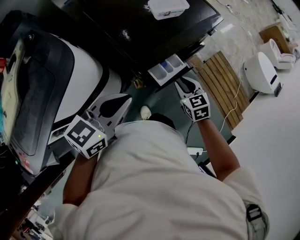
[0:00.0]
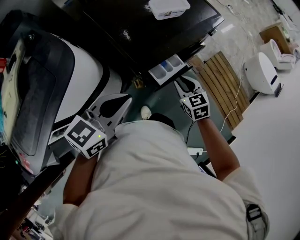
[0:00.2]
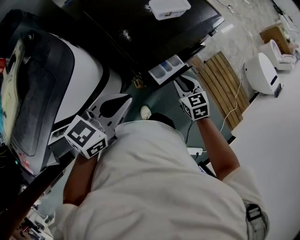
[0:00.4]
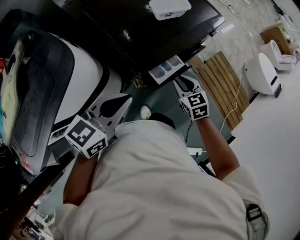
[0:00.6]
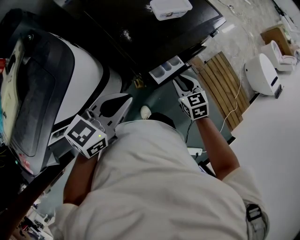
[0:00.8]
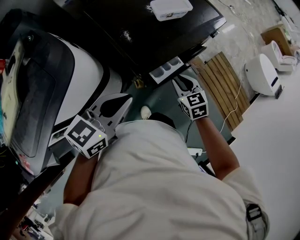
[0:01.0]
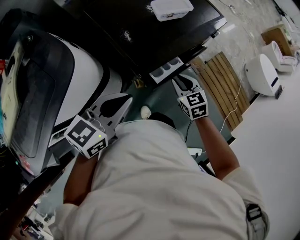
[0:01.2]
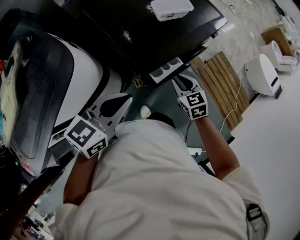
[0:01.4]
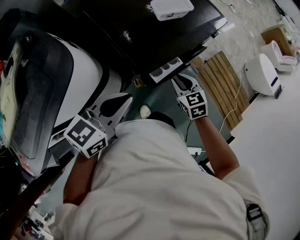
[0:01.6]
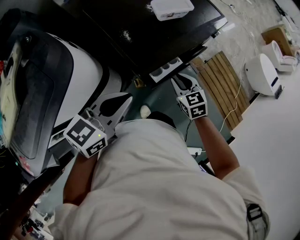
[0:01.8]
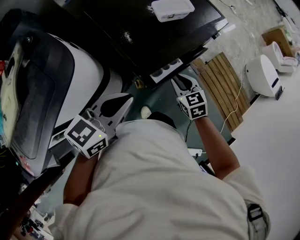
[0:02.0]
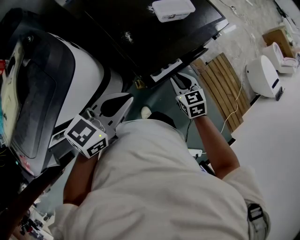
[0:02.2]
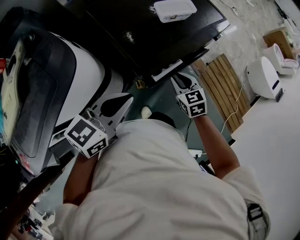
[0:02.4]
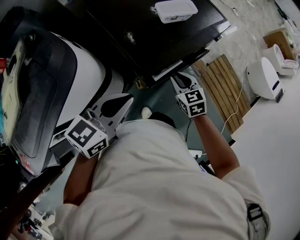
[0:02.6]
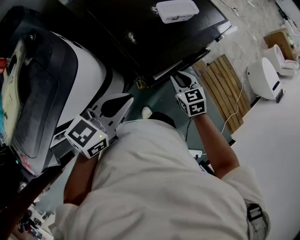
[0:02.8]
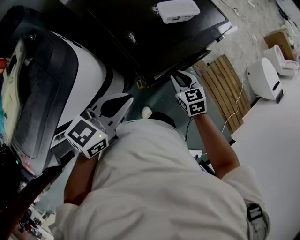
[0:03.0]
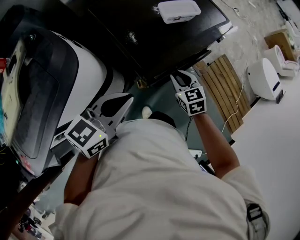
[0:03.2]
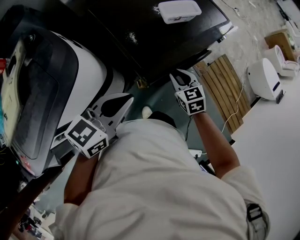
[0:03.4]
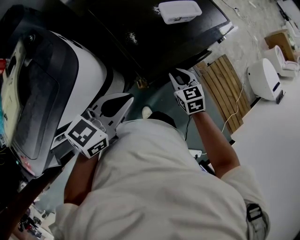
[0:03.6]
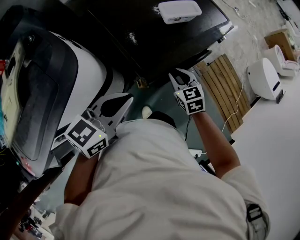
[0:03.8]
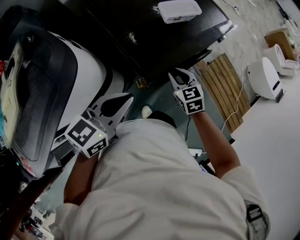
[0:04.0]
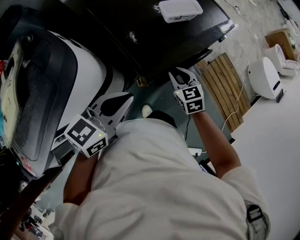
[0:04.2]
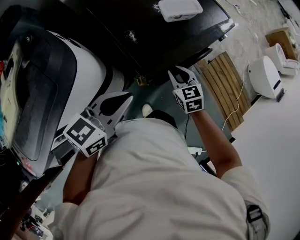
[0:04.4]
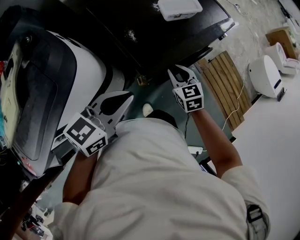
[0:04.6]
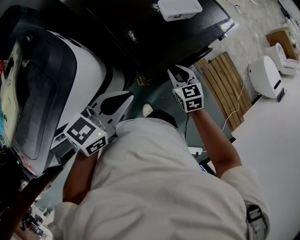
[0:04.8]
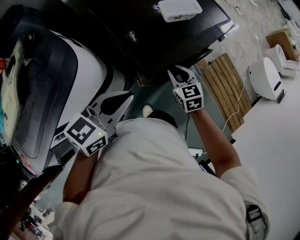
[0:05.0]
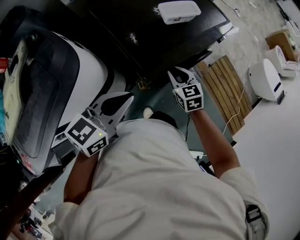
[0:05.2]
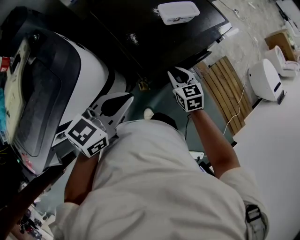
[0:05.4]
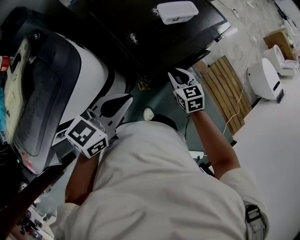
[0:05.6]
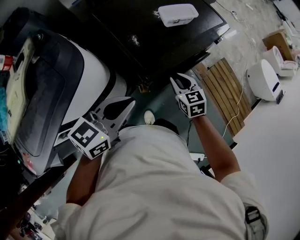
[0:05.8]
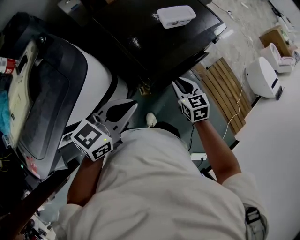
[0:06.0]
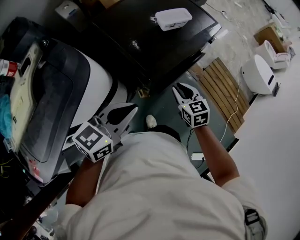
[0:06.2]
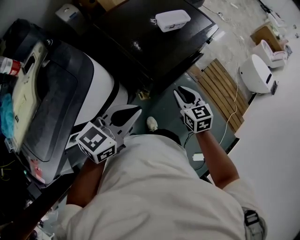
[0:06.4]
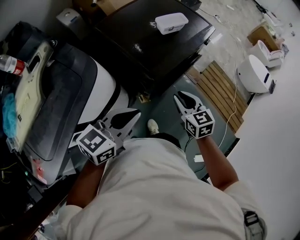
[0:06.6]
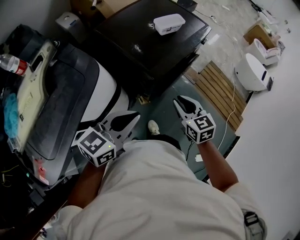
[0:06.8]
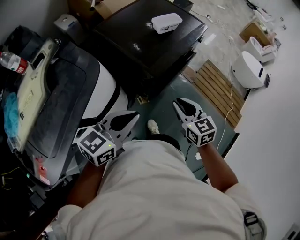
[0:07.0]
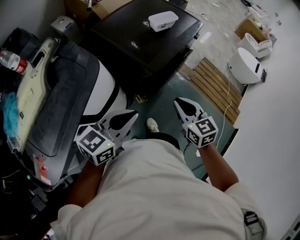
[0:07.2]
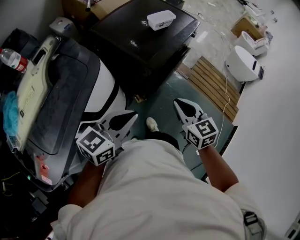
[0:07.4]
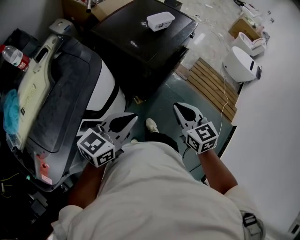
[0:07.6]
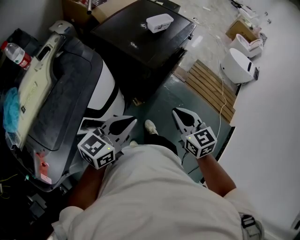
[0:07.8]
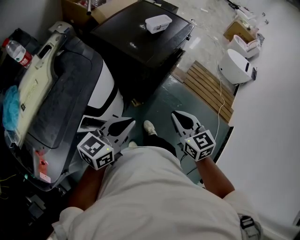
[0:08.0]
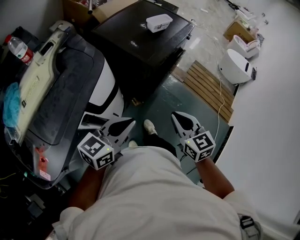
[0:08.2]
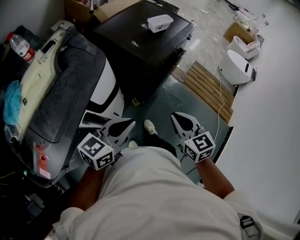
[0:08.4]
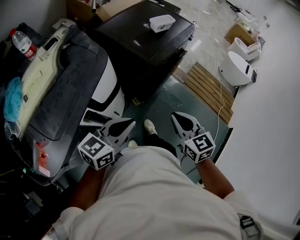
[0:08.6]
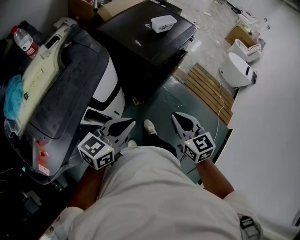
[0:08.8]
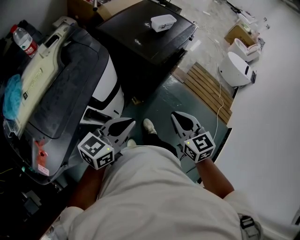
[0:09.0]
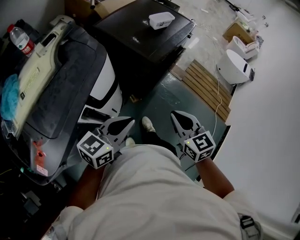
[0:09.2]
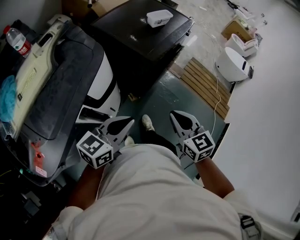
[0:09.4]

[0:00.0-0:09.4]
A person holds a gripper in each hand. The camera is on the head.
0:00.0 to 0:01.6: There are only small adjustments of the grippers.
0:01.6 to 0:04.8: There are only small adjustments of the grippers.
0:04.8 to 0:06.2: Both grippers travel together backward, about 5 cm.
0:06.2 to 0:07.8: The right gripper moves backward and upward, about 25 cm, while the left gripper heads backward, covering some 15 cm.
0:07.8 to 0:09.4: The right gripper is displaced backward by some 5 cm.

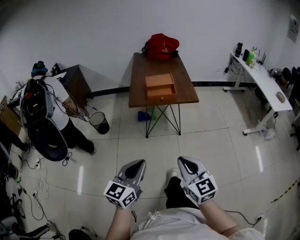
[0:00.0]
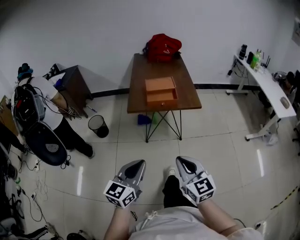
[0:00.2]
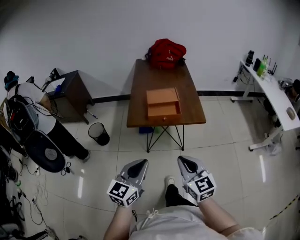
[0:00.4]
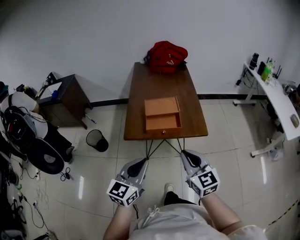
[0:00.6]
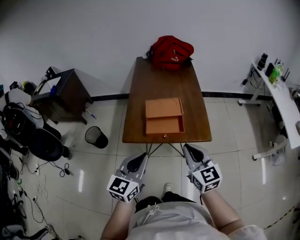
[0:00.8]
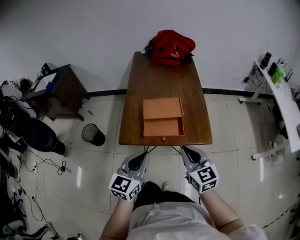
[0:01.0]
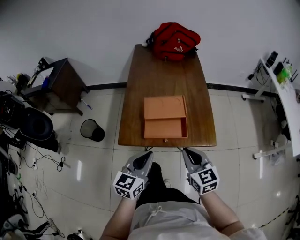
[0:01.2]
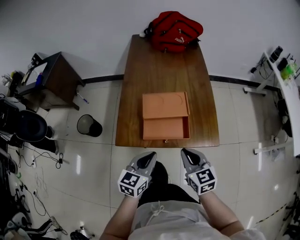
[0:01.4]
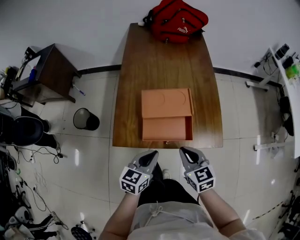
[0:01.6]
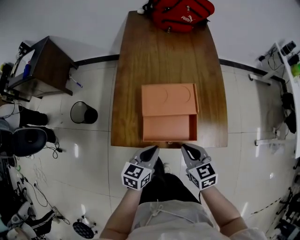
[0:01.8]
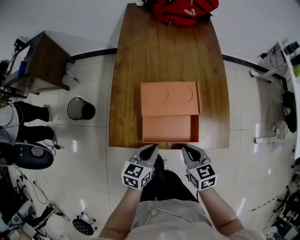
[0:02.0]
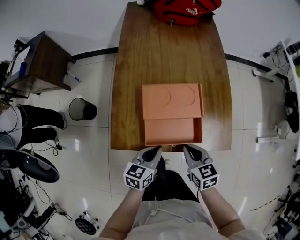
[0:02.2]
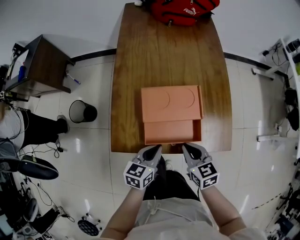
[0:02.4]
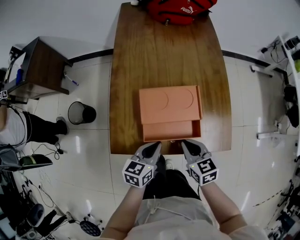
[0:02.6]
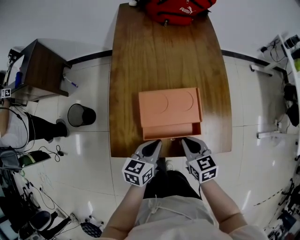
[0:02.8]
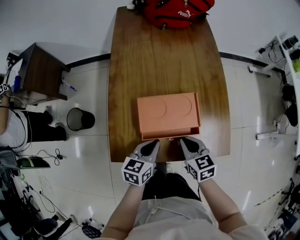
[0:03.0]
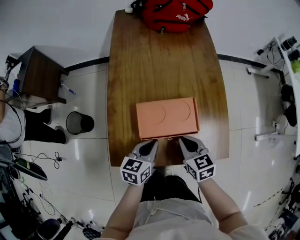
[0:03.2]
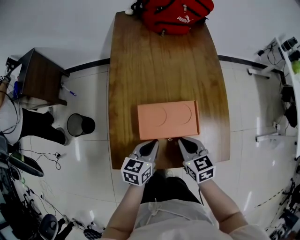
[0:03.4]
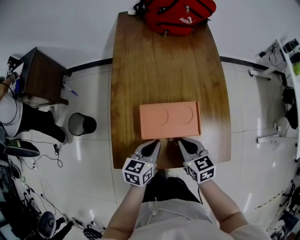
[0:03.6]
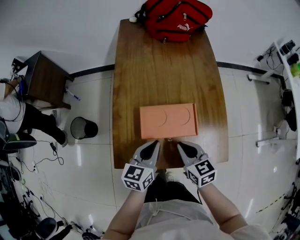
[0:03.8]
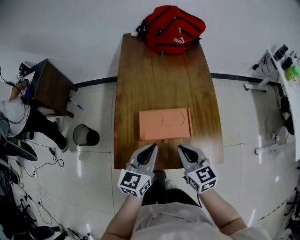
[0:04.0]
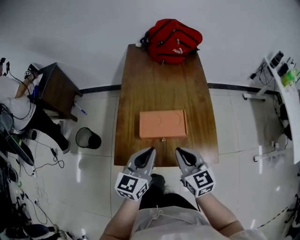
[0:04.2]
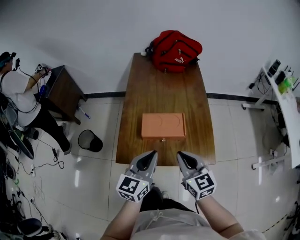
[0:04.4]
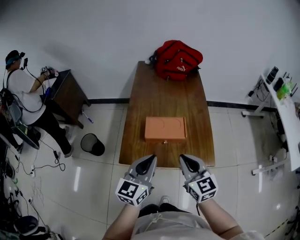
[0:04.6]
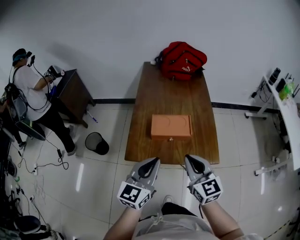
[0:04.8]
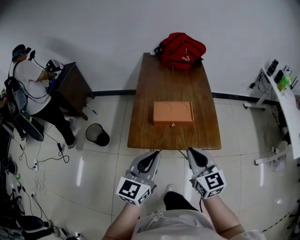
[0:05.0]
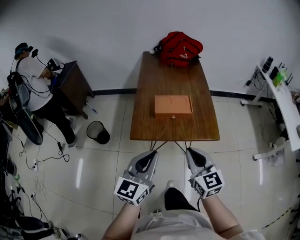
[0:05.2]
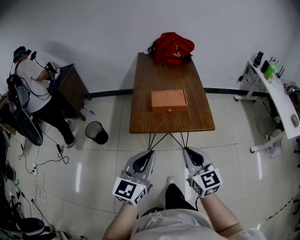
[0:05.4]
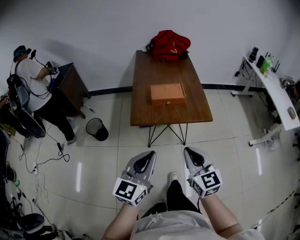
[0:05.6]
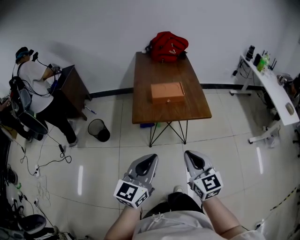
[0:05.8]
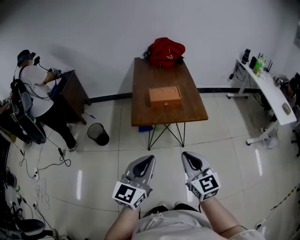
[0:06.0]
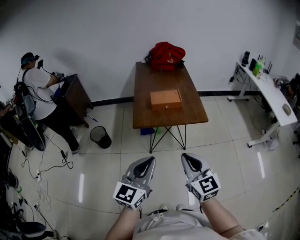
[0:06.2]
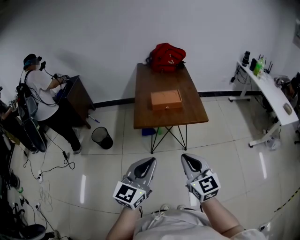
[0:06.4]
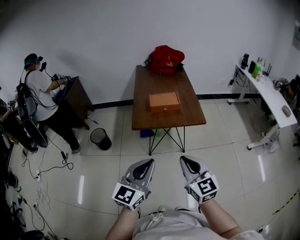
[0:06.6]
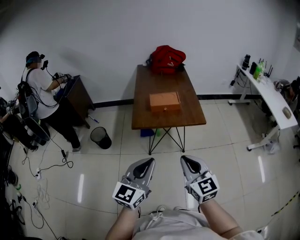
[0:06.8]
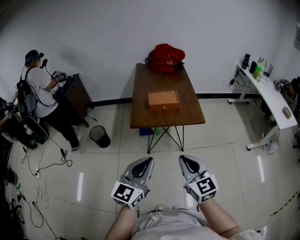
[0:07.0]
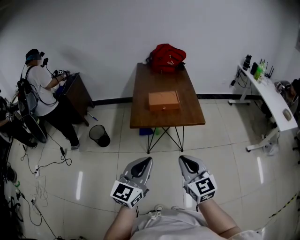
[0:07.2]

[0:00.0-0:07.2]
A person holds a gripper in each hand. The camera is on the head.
0:00.0 to 0:01.4: The pair of grippers is taken forward, approximately 50 cm.
0:01.4 to 0:02.8: The right gripper goes about 15 cm downward and forward. The left gripper shifts about 15 cm forward and downward.
0:02.8 to 0:04.4: Both grippers move upward, approximately 20 cm. The right gripper changes its angle by about 30 degrees; the left gripper changes its angle by about 30 degrees.
0:04.4 to 0:05.8: Both grippers move backward, some 35 cm.
0:05.8 to 0:07.2: The right gripper shifts by some 5 cm. The left gripper moves some 5 cm.

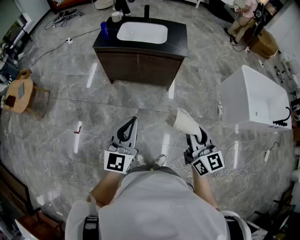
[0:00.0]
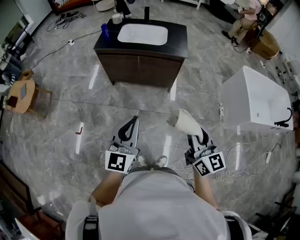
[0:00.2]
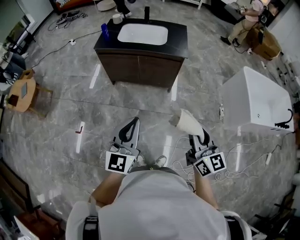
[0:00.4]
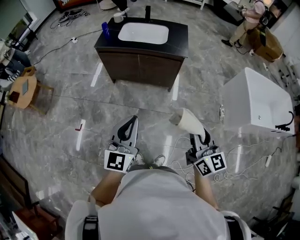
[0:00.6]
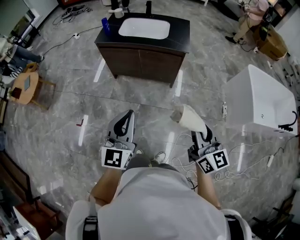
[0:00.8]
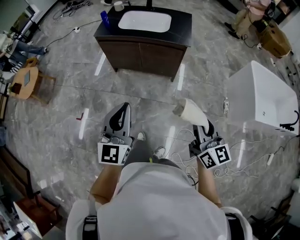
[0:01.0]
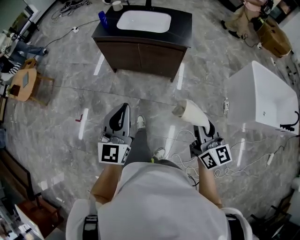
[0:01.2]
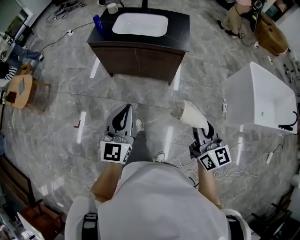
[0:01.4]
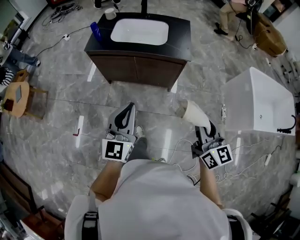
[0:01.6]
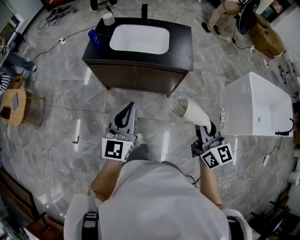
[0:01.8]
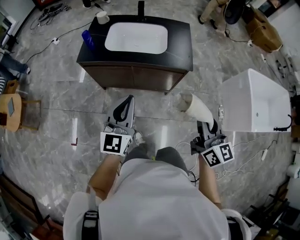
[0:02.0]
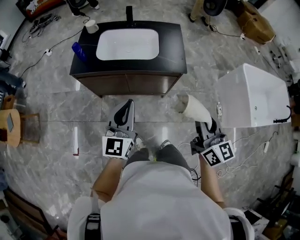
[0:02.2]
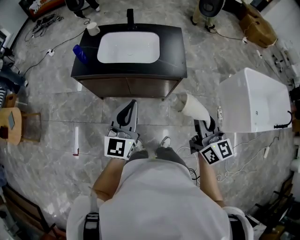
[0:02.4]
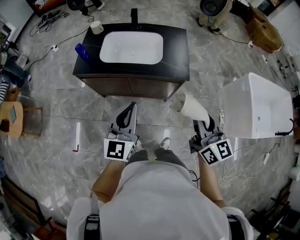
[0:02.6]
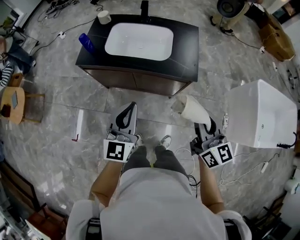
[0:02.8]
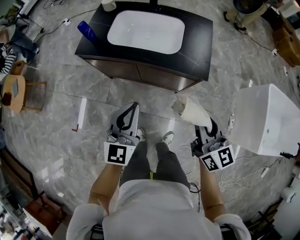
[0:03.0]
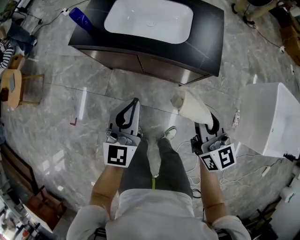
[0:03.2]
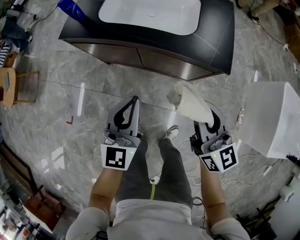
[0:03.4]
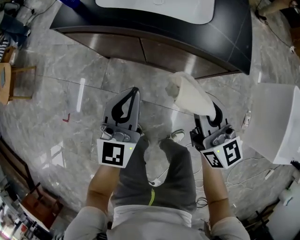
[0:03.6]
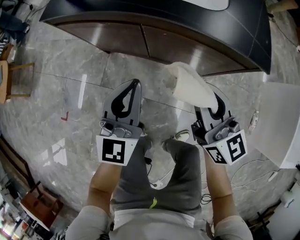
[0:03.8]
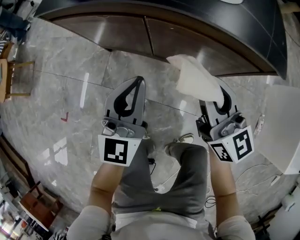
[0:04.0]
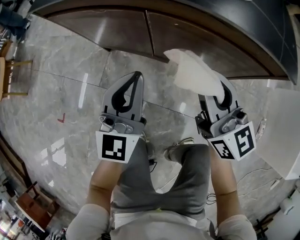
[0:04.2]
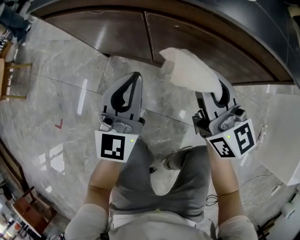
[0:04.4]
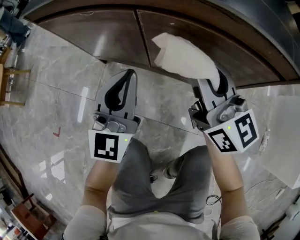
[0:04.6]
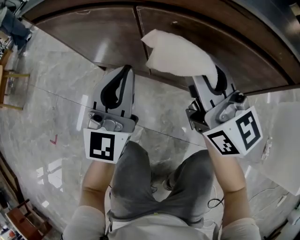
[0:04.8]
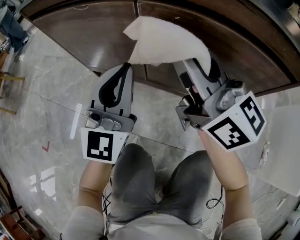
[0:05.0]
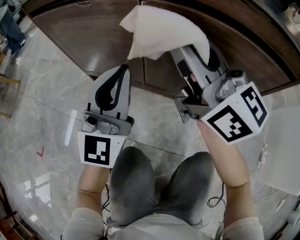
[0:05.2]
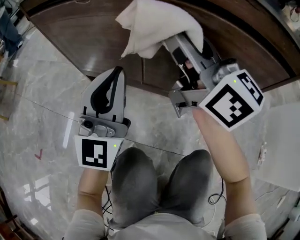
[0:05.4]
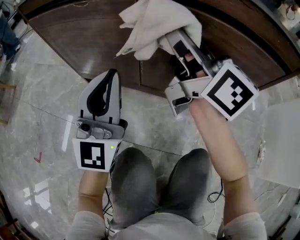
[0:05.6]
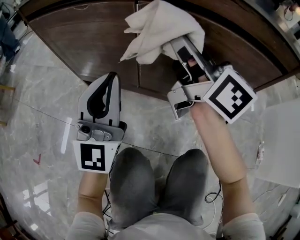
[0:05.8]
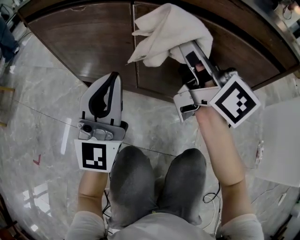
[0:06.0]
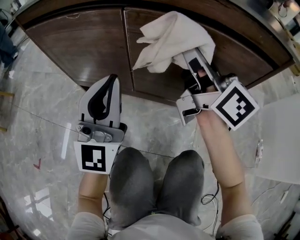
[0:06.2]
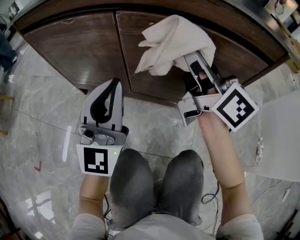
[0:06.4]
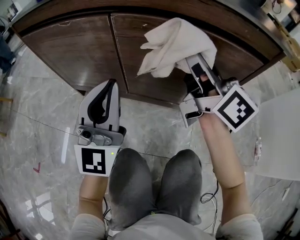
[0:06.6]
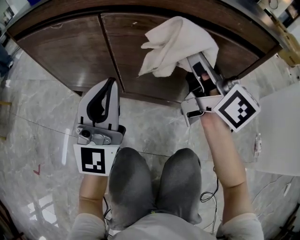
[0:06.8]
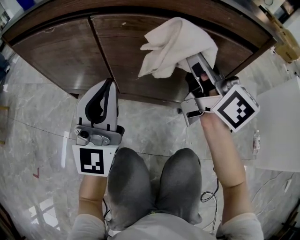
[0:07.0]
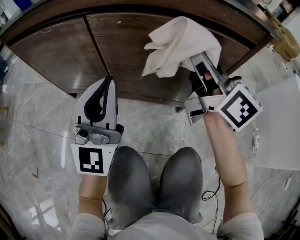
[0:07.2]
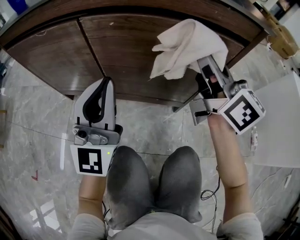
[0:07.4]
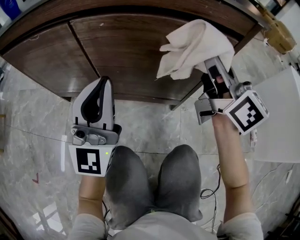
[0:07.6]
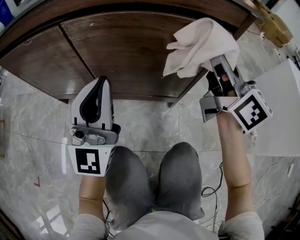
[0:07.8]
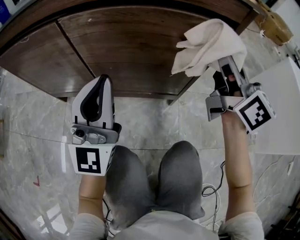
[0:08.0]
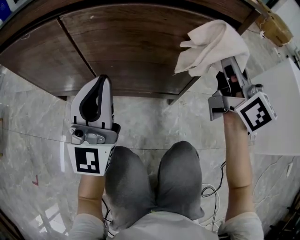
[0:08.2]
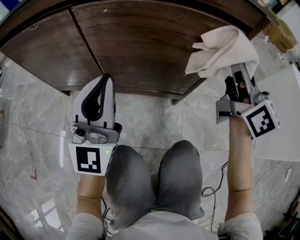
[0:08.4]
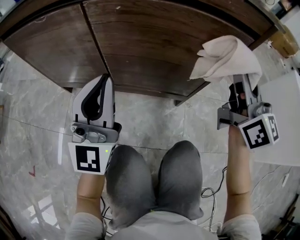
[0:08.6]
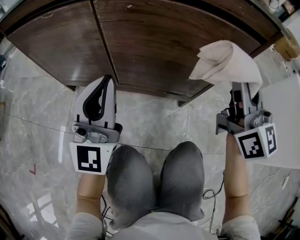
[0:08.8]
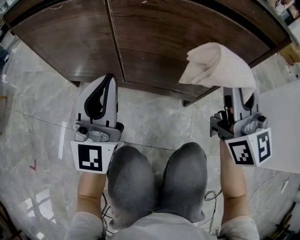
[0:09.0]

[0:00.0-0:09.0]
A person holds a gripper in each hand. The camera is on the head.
0:00.0 to 0:01.6: The left gripper moves forward, roughly 20 cm, while the right gripper shifts approximately 20 cm forward and to the right.
0:01.6 to 0:03.0: The grippers both shift forward by about 30 cm.
0:03.0 to 0:04.4: Both grippers move downward, roughly 50 cm.
0:04.4 to 0:06.0: The left gripper goes some 5 cm downward; the right gripper moves forward, some 10 cm.
0:06.0 to 0:07.6: The right gripper shifts roughly 20 cm to the right; the left gripper moves to the right, about 10 cm.
0:07.6 to 0:09.0: The left gripper goes approximately 10 cm to the left; the right gripper heads to the left and backward, covering about 10 cm, and rotates roughly 20 degrees.
